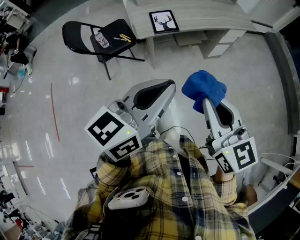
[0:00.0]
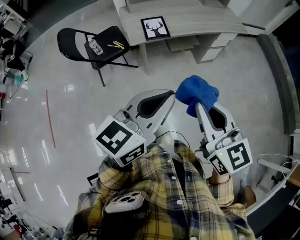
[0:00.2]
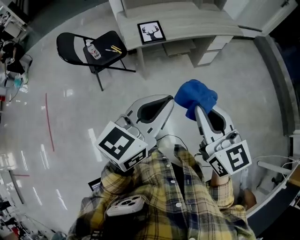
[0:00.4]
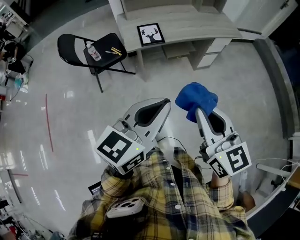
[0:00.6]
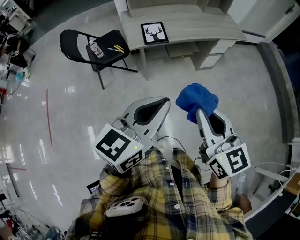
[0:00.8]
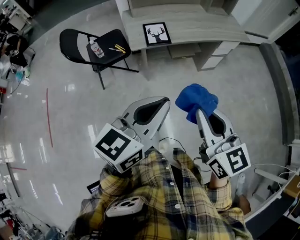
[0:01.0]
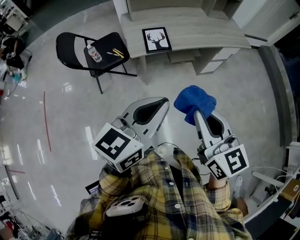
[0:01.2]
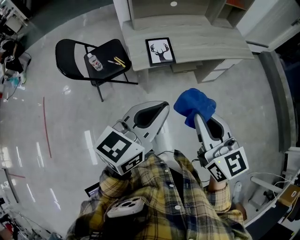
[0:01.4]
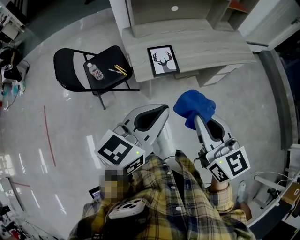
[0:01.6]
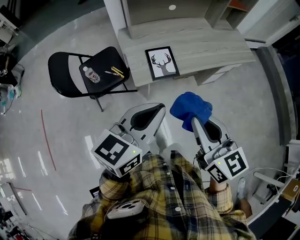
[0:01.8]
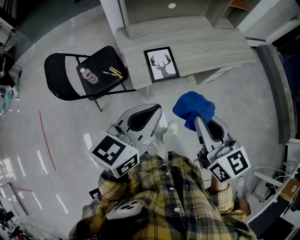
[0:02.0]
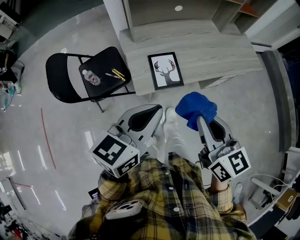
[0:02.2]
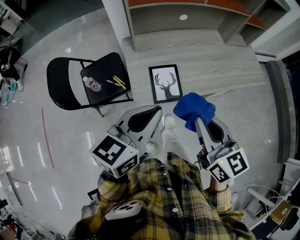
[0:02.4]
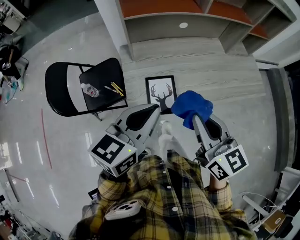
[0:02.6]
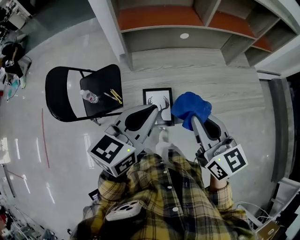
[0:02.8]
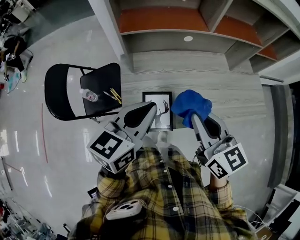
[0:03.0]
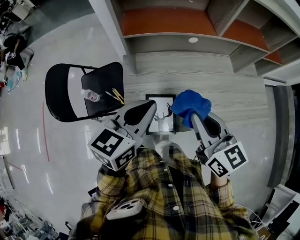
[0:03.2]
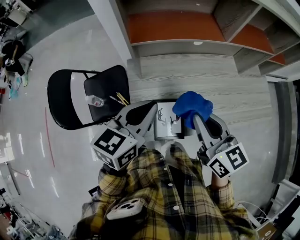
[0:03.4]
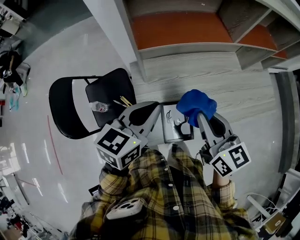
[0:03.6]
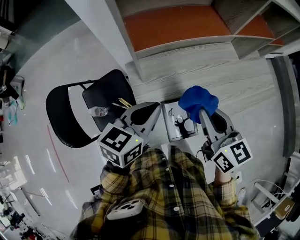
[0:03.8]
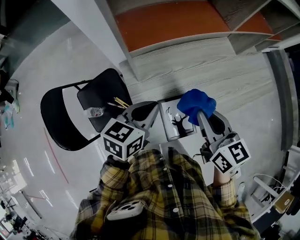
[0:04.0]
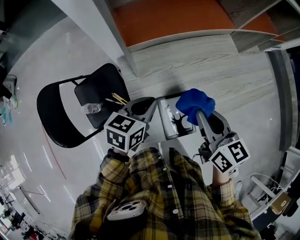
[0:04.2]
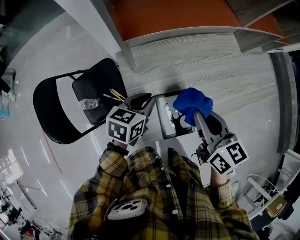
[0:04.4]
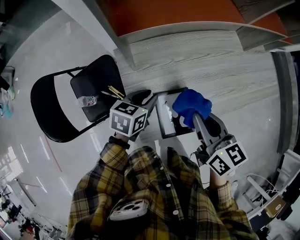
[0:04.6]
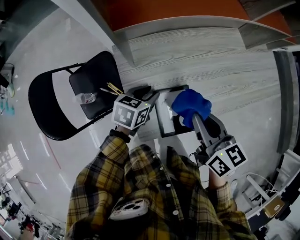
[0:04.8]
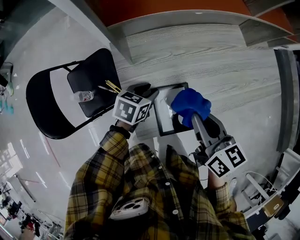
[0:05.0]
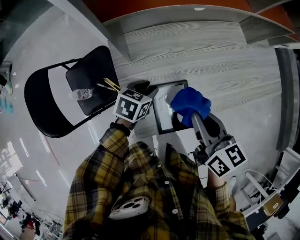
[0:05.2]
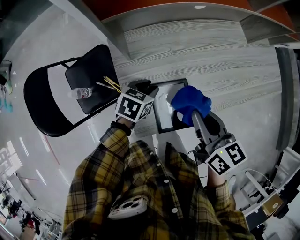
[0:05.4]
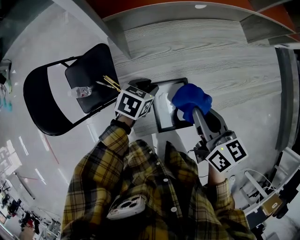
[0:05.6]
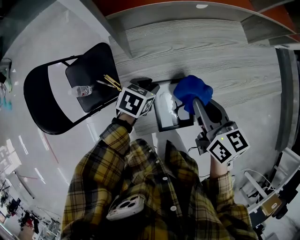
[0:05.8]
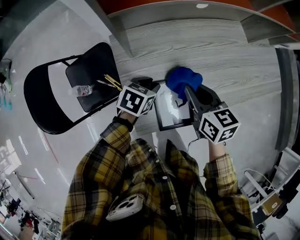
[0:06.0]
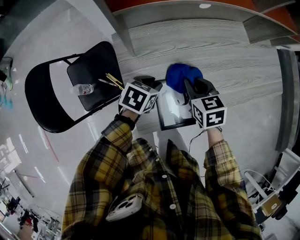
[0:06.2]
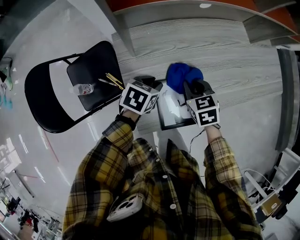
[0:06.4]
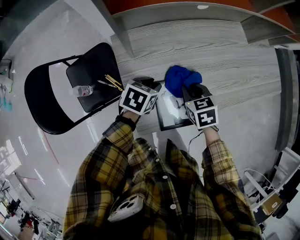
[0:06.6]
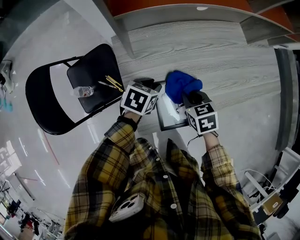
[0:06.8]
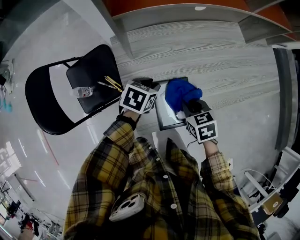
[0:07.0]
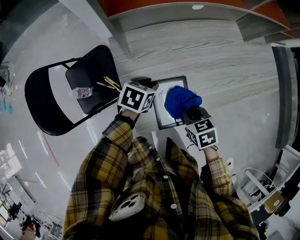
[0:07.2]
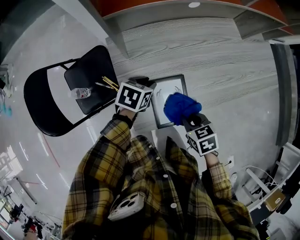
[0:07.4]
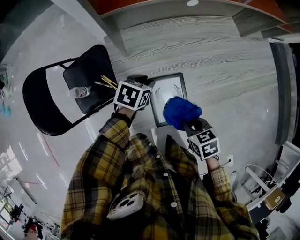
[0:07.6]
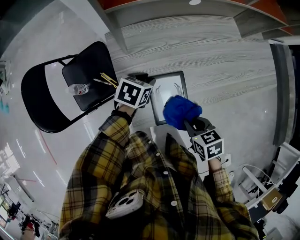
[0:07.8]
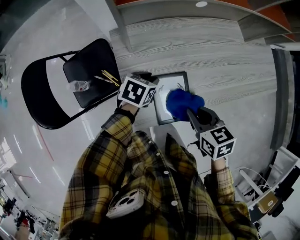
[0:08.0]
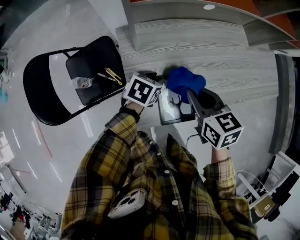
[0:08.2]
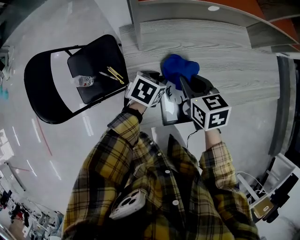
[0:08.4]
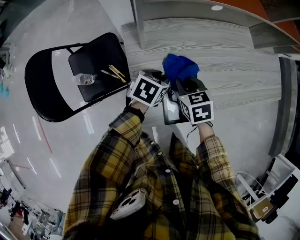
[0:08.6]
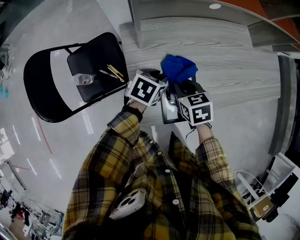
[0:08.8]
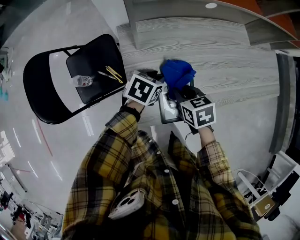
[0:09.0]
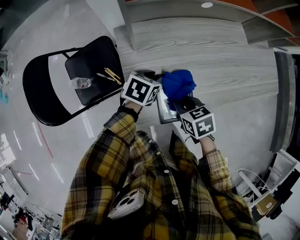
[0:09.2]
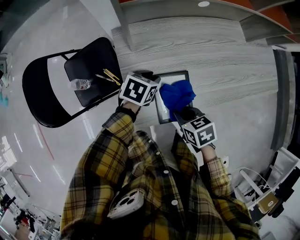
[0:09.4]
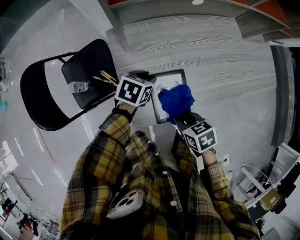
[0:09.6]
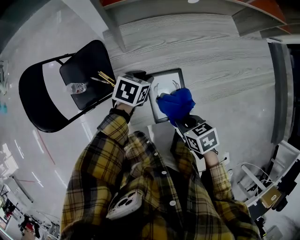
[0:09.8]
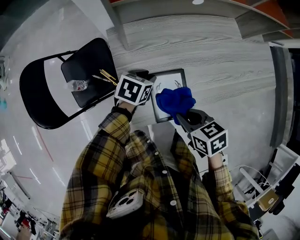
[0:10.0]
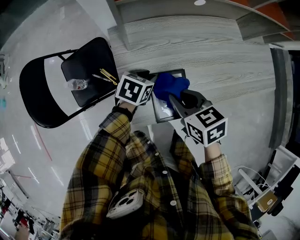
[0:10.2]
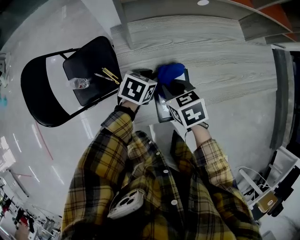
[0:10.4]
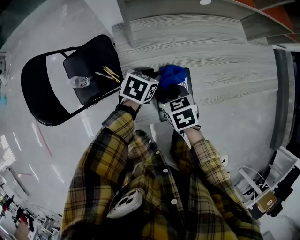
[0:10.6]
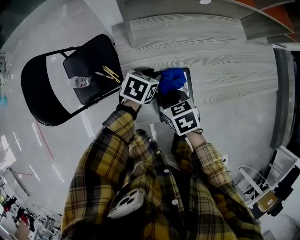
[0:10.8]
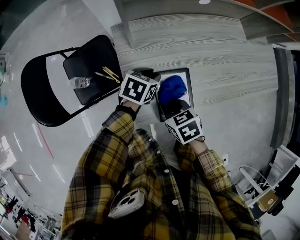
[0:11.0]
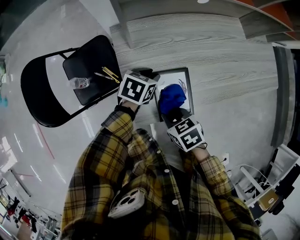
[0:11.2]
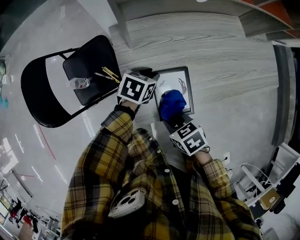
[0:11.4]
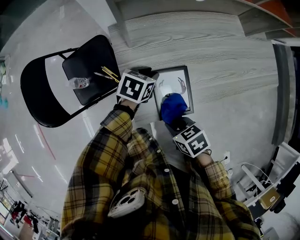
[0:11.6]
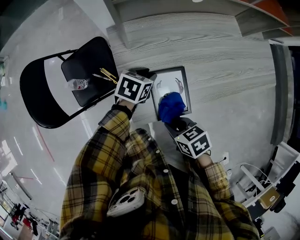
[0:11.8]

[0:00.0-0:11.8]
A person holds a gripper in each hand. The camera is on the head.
0:00.0 to 0:01.4: The grippers both shift forward by approximately 10 cm.
0:01.4 to 0:03.0: Both grippers travel together forward, about 40 cm.
0:03.0 to 0:04.4: The right gripper goes some 15 cm downward, to the left and forward, and rotates about 20 degrees. Meanwhile the left gripper moves downward, forward and to the left, approximately 25 cm, and rotates about 30 degrees.
0:04.4 to 0:06.0: Both grippers move downward, some 10 cm. The left gripper opens.
0:06.0 to 0:07.4: The right gripper shifts about 15 cm backward and downward, and turns by approximately 30 degrees.
0:07.4 to 0:08.8: The right gripper heads forward and to the left, covering some 15 cm.
0:08.8 to 0:10.4: The right gripper reaches approximately 10 cm upward, then returns.
0:10.4 to 0:11.8: The right gripper ends up roughly 15 cm from where it was.

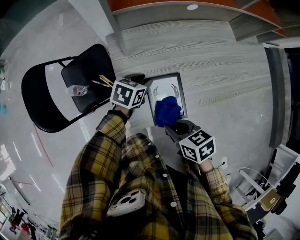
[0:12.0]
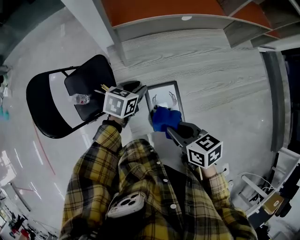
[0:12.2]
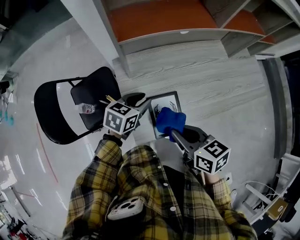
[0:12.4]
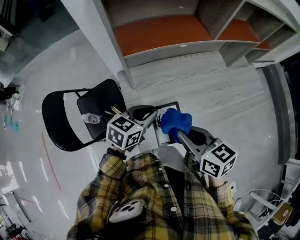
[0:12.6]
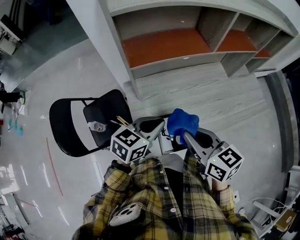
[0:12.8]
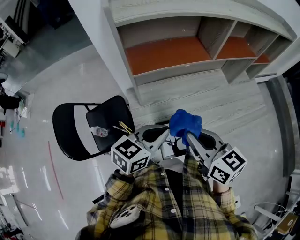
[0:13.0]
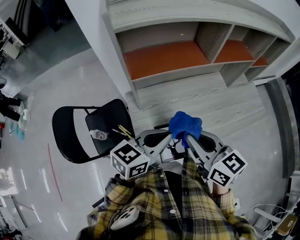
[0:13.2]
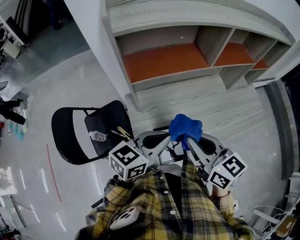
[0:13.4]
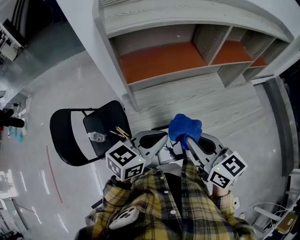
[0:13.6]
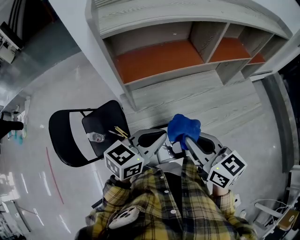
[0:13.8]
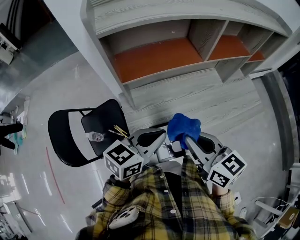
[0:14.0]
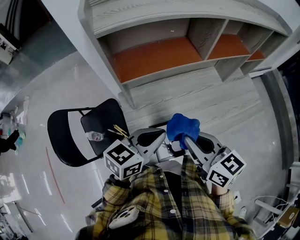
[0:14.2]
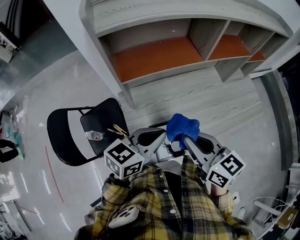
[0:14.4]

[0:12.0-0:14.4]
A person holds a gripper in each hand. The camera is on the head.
0:12.0 to 0:13.2: The left gripper goes some 30 cm upward, tilts its fingers roughly 30 degrees upward, and closes. Meanwhile the right gripper travels upward and forward by some 25 cm, and angles its fingers upward, by about 30 degrees.
0:13.2 to 0:14.4: The grippers make only small movements.

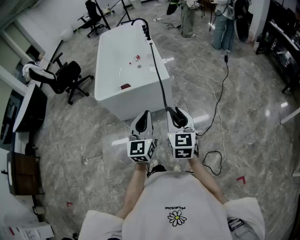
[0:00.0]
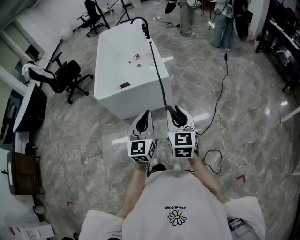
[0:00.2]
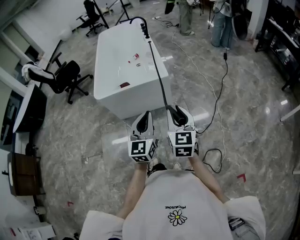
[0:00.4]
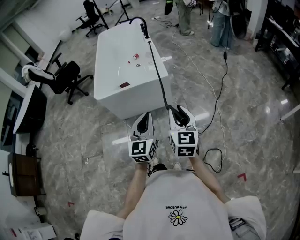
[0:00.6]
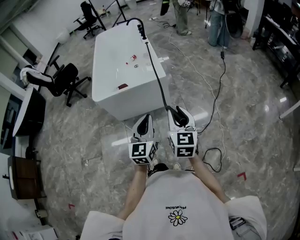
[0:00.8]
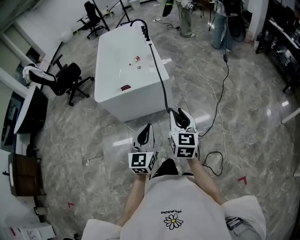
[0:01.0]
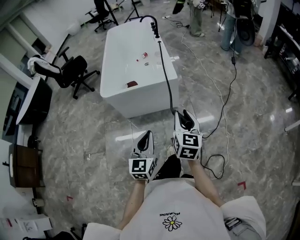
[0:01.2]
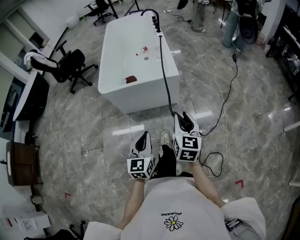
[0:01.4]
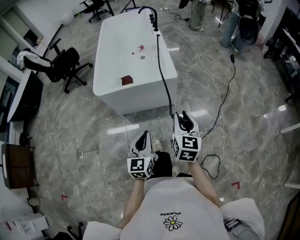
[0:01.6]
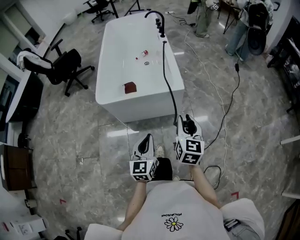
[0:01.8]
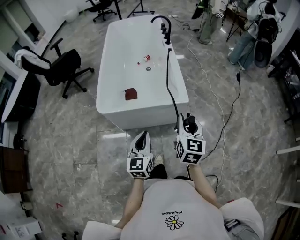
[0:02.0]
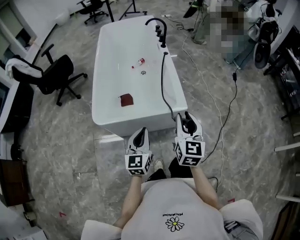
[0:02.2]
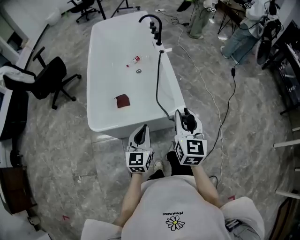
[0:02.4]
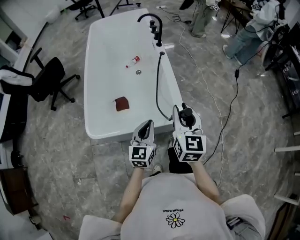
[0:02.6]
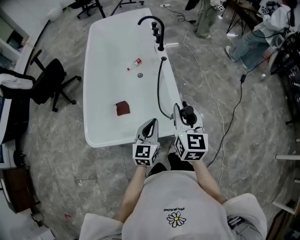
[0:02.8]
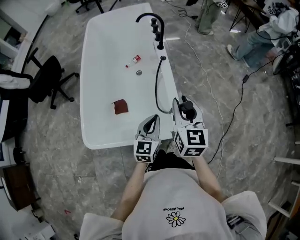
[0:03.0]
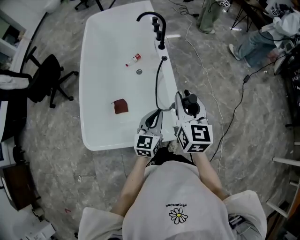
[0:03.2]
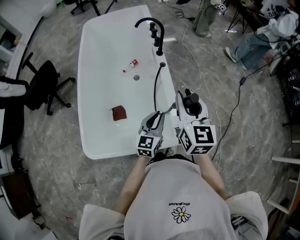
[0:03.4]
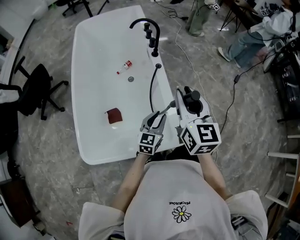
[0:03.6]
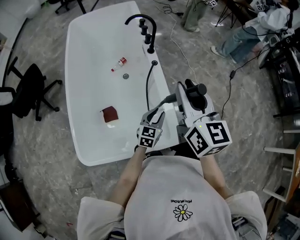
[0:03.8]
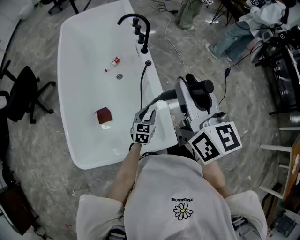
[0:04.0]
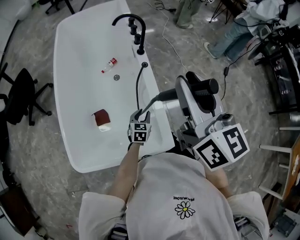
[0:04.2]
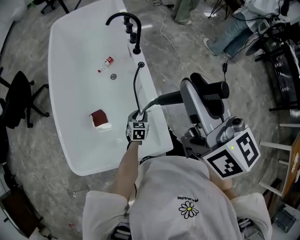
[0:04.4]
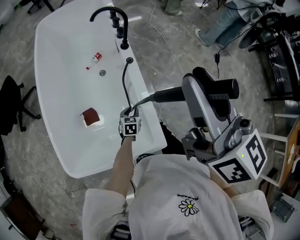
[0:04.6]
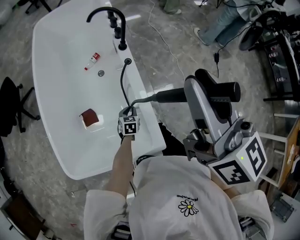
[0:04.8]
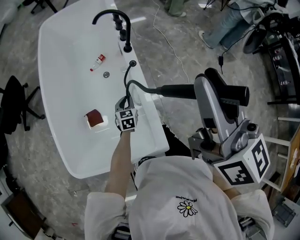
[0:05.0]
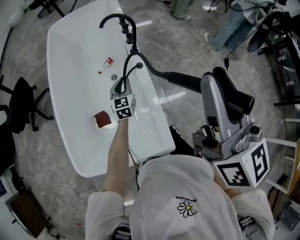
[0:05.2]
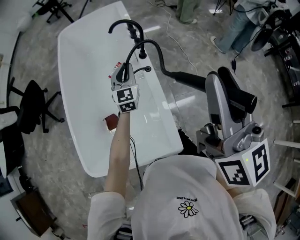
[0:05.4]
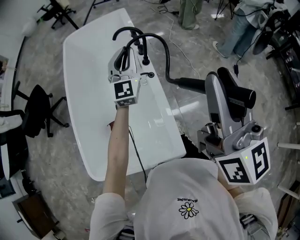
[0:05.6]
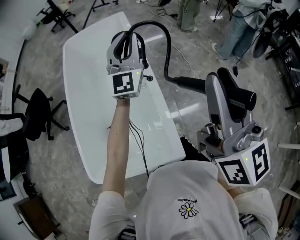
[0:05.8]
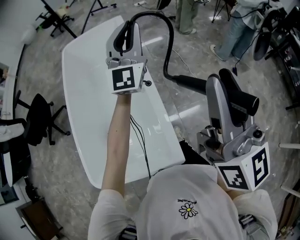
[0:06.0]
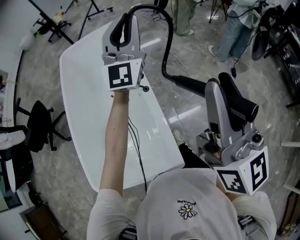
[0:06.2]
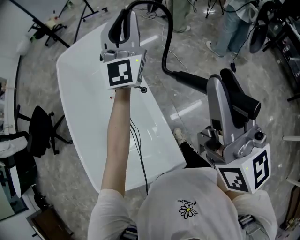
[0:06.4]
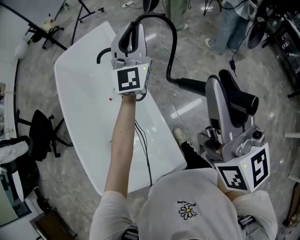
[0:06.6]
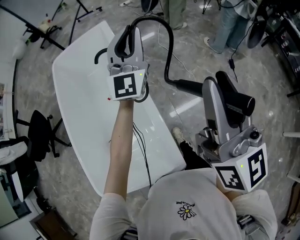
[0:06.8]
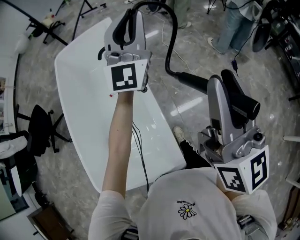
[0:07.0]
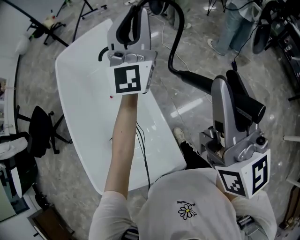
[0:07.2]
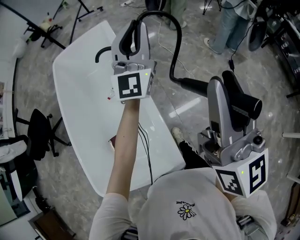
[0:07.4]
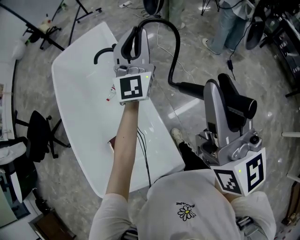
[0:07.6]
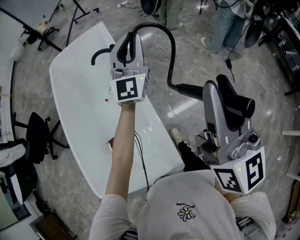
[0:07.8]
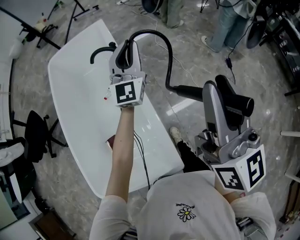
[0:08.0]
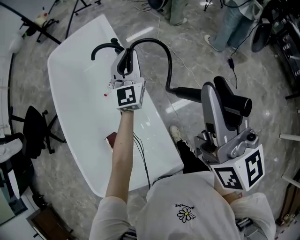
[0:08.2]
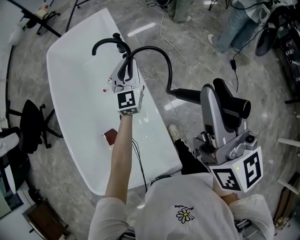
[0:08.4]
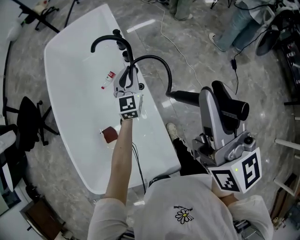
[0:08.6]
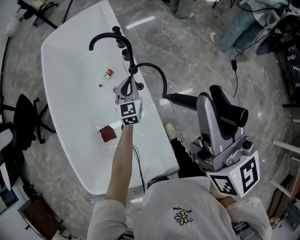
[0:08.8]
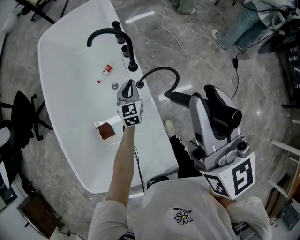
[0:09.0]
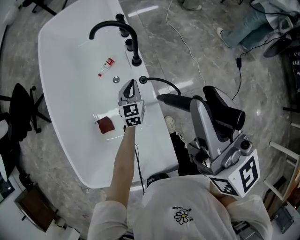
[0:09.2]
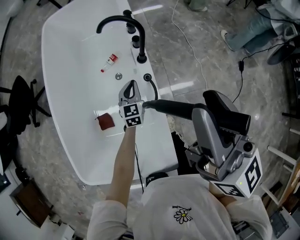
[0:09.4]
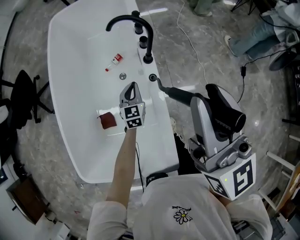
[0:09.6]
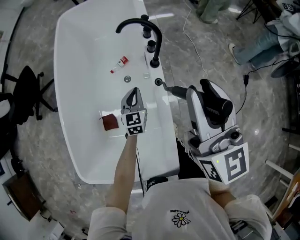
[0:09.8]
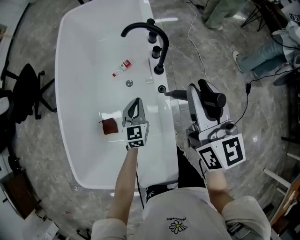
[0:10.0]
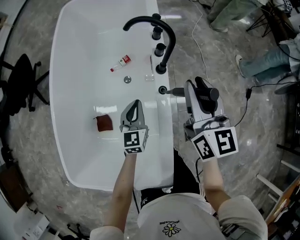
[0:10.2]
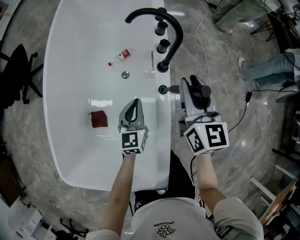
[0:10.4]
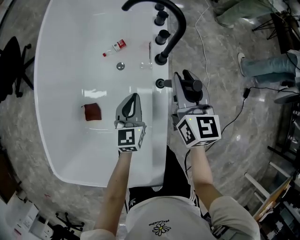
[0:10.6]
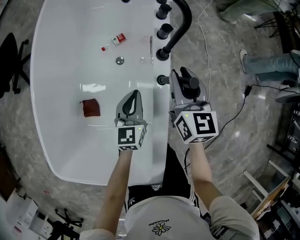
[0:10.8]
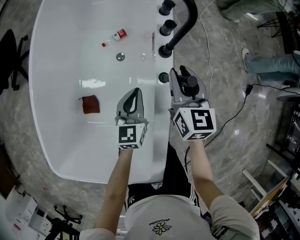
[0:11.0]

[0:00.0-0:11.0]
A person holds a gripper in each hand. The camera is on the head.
0:00.0 to 0:01.6: The left gripper heads downward and to the left, covering about 10 cm. Meanwhile the right gripper is displaced forward and downward by about 10 cm.
0:01.6 to 0:03.2: The two grippers travel together, forward, roughly 60 cm.
0:03.2 to 0:04.8: The right gripper travels upward and forward by roughly 20 cm, while the left gripper goes approximately 35 cm downward and forward, and points its fingers roughly 40 degrees further downward.
0:04.8 to 0:06.2: The left gripper goes roughly 60 cm upward, and tips its fingers upward by approximately 80 degrees. Meanwhile the right gripper travels upward and to the right by some 10 cm, and rotates some 20 degrees.
0:06.2 to 0:07.8: The right gripper moves forward, about 5 cm; the left gripper swings up and down, some 10 cm each way, with 2 reversals.
0:07.8 to 0:09.4: The left gripper heads downward and to the left, covering approximately 40 cm, and points its fingers some 50 degrees further downward. The right gripper shifts roughly 20 cm to the left, forward and downward, and turns by roughly 30 degrees.
0:09.4 to 0:11.0: The right gripper goes some 40 cm downward and forward, and tips its fingers downward by about 30 degrees; the left gripper shifts by approximately 5 cm.
